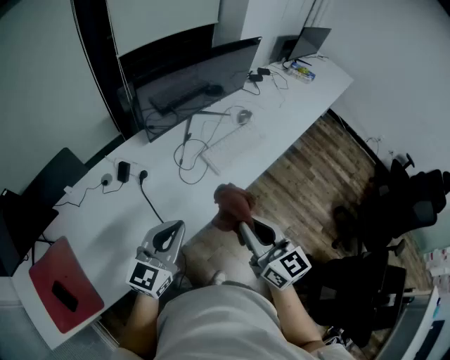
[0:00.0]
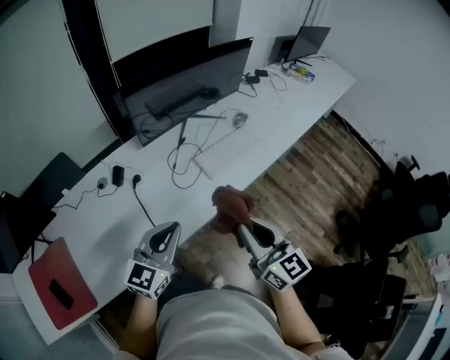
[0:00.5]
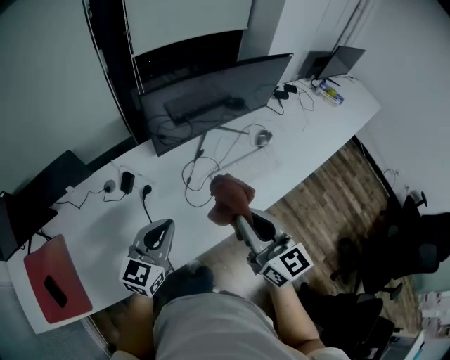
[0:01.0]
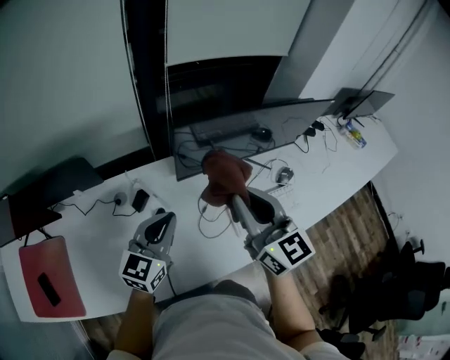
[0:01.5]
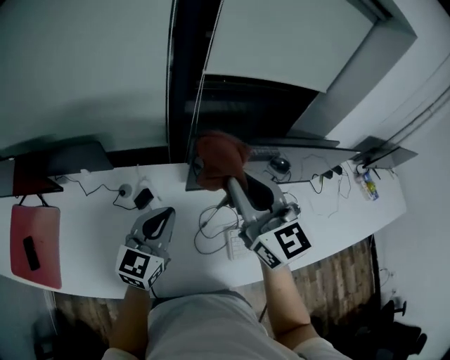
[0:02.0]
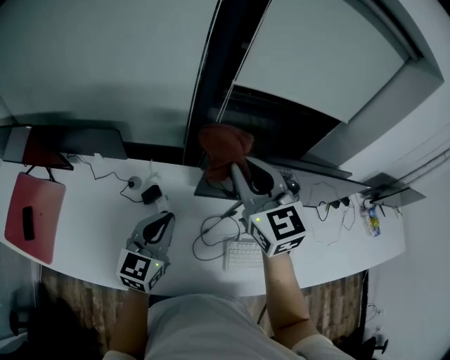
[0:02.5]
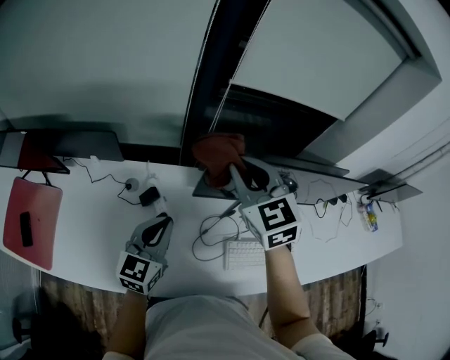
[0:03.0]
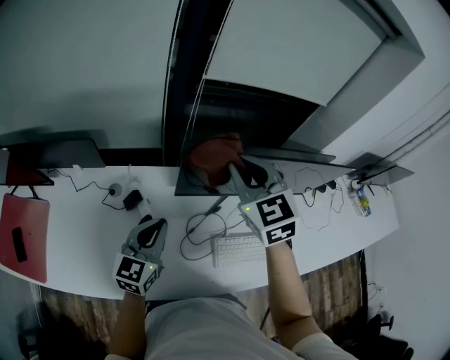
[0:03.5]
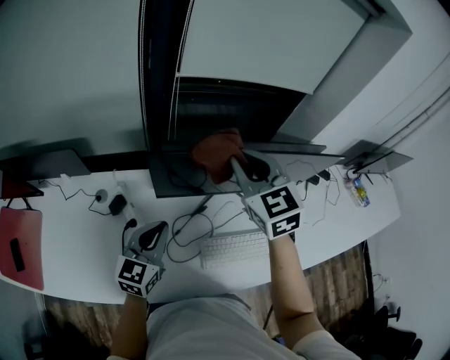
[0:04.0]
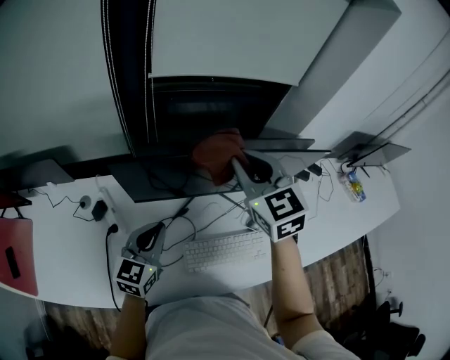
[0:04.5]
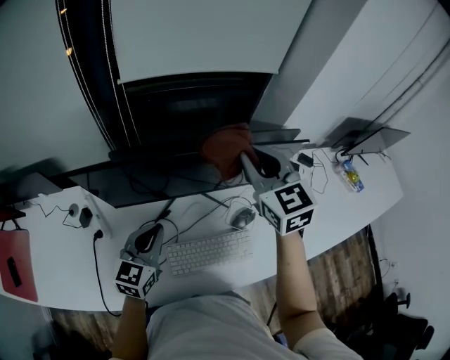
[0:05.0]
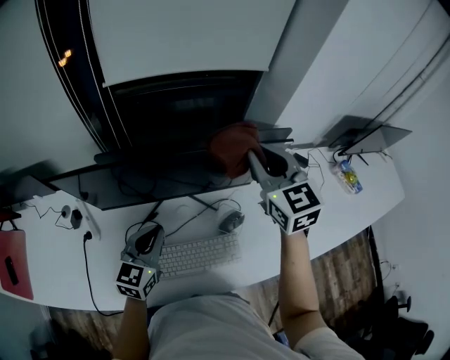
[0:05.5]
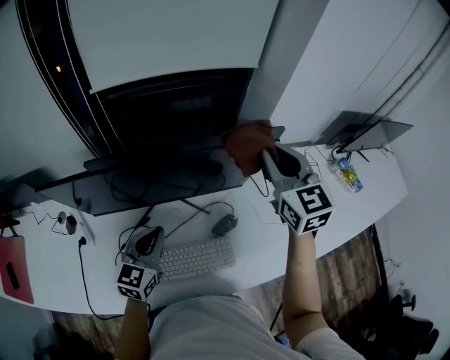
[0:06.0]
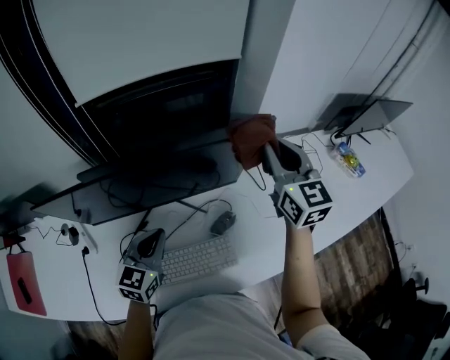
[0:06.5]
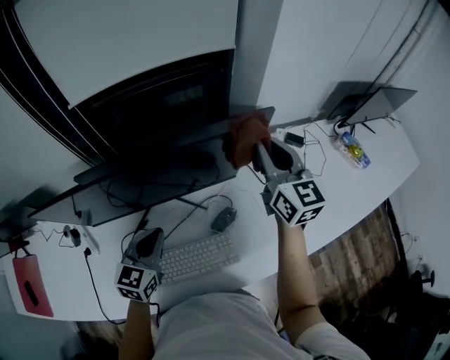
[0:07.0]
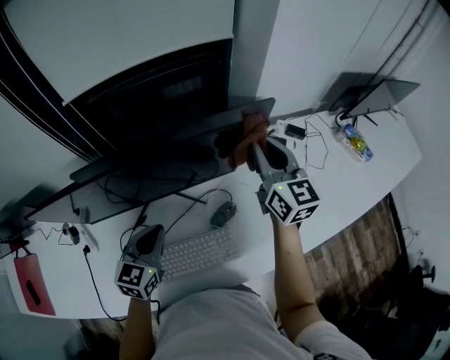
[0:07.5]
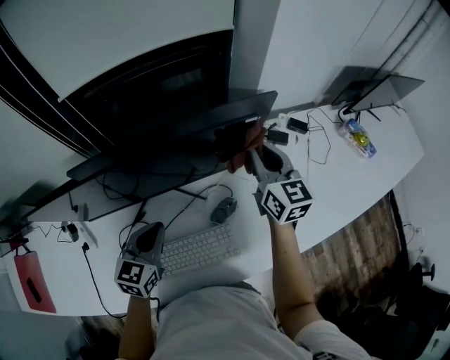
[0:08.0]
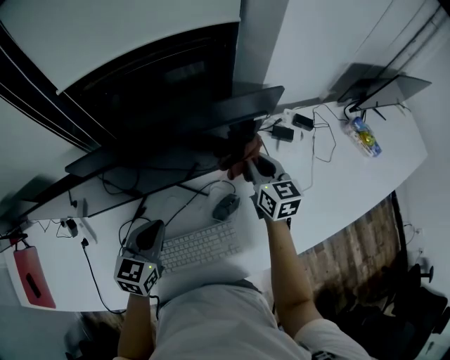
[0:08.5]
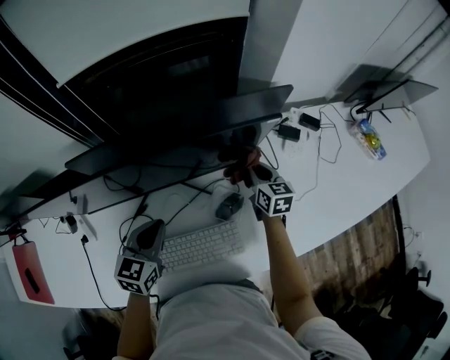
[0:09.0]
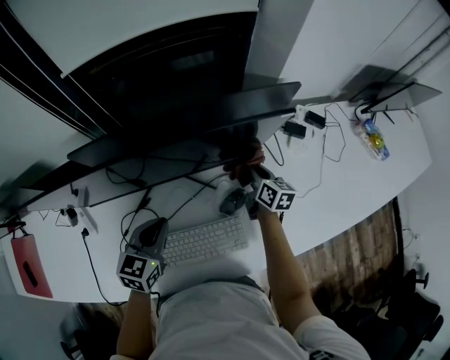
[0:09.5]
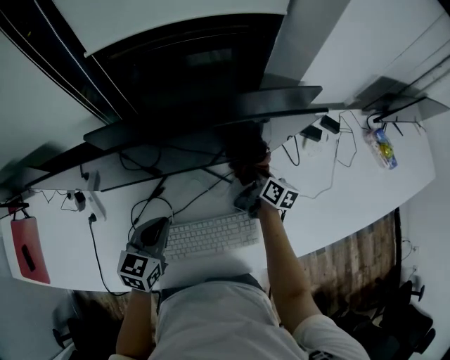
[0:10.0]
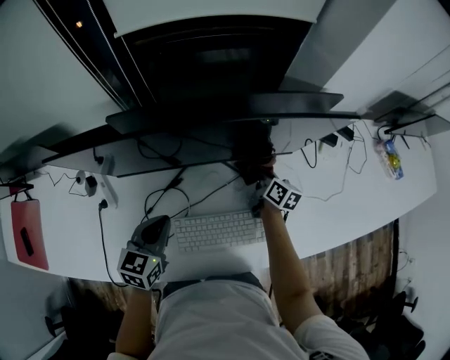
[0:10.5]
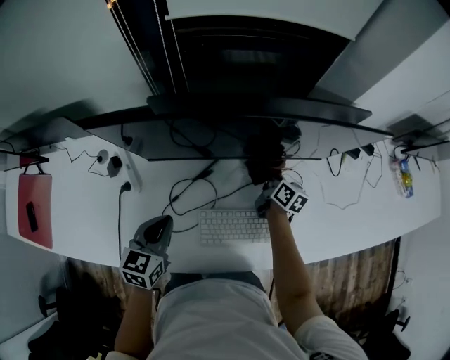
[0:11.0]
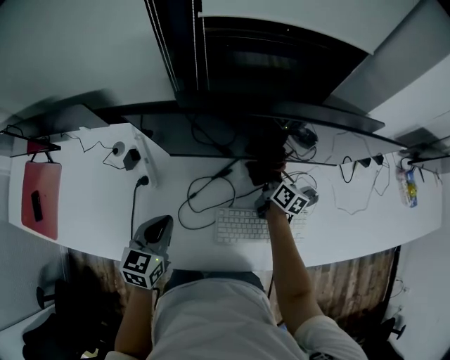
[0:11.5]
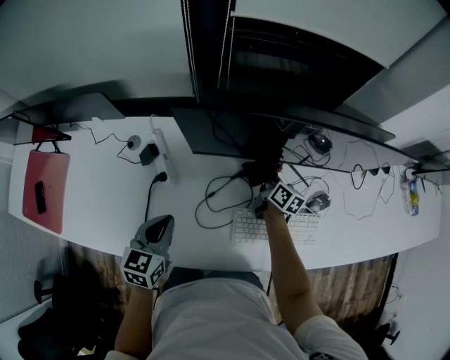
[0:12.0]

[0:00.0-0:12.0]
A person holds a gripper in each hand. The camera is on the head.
0:00.0 to 0:02.0: The left gripper moves about 30 cm, and turns by some 40 degrees; the right gripper changes place by approximately 40 cm, and rotates some 40 degrees.
0:02.0 to 0:04.0: The right gripper moves to the right and forward, roughly 15 cm, and rotates approximately 20 degrees; the left gripper shifts about 10 cm to the right and downward.
0:04.0 to 0:06.0: Both grippers travel together to the right, roughly 30 cm.
0:06.0 to 0:08.0: The left gripper ends up some 5 cm from where it was; the right gripper goes about 15 cm downward and to the right, and rotates approximately 20 degrees.
0:08.0 to 0:10.0: The right gripper is displaced downward by approximately 25 cm, and rotates approximately 40 degrees. Meanwhile the left gripper moves to the left, roughly 5 cm.
0:10.0 to 0:12.0: Both grippers travel together to the left, approximately 30 cm.

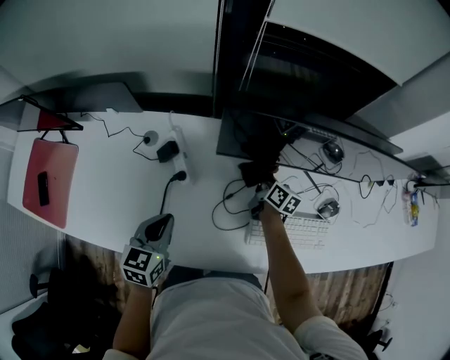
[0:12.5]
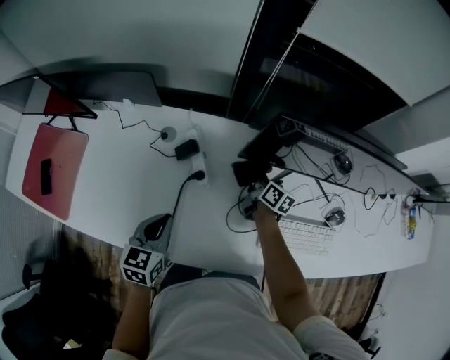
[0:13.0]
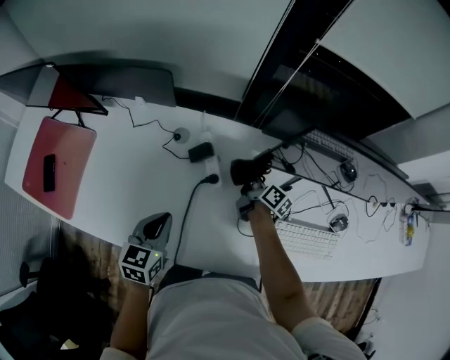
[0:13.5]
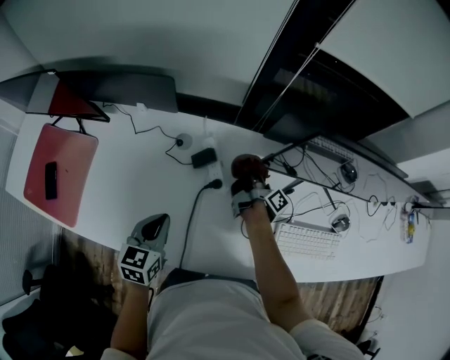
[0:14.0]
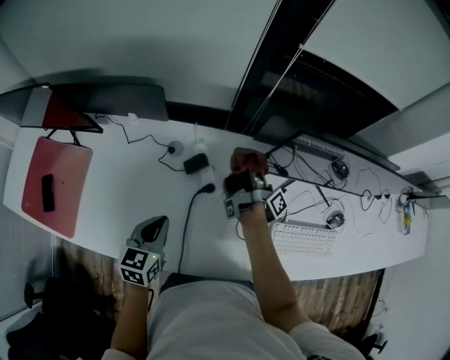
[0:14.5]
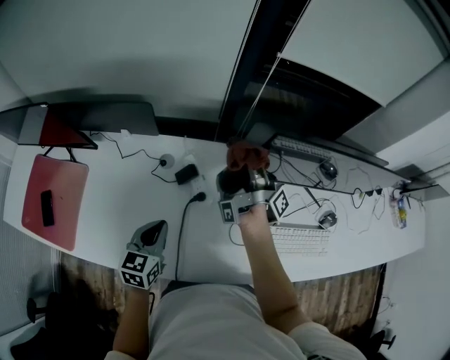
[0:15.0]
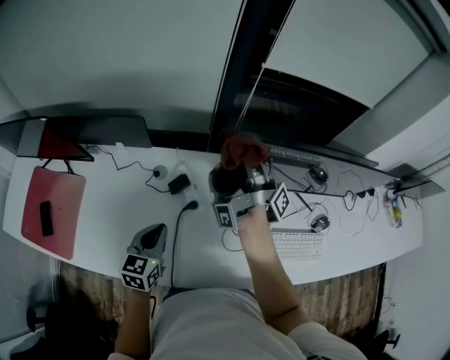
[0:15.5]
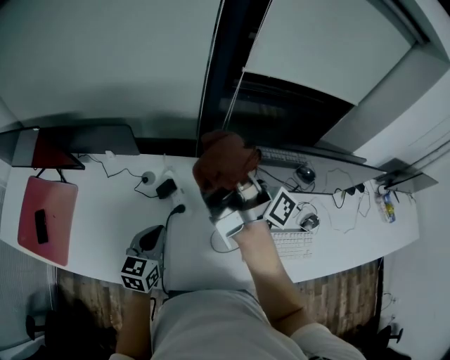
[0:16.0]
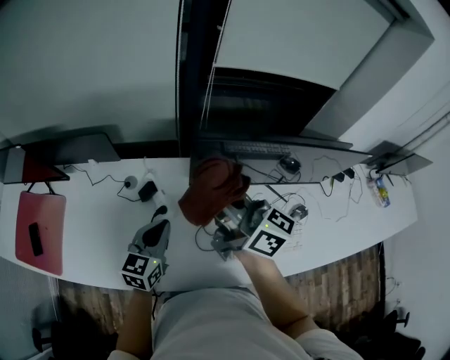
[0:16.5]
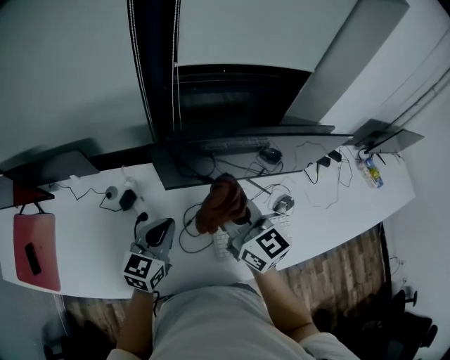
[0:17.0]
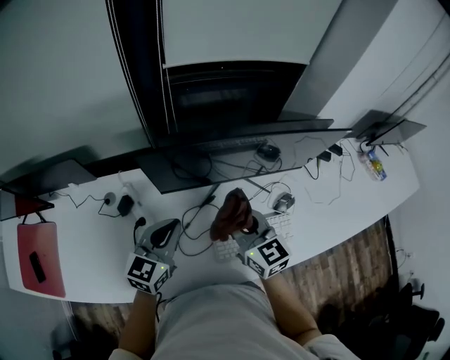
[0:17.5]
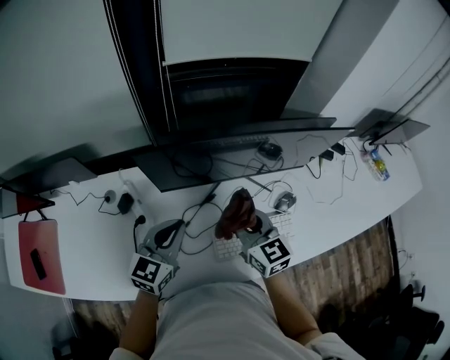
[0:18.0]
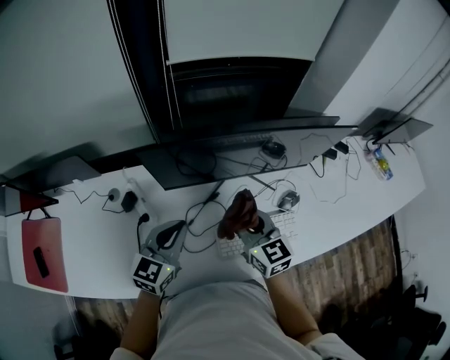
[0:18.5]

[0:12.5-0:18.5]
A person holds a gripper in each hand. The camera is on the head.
0:12.5 to 0:14.5: The right gripper travels to the left and upward by some 20 cm, and twists roughly 60 degrees clockwise, seen from behind, while the left gripper goes roughly 15 cm to the left.
0:14.5 to 0:16.5: The right gripper moves upward and backward, about 30 cm, and twists roughly 60 degrees counterclockwise, seen from behind, while the left gripper goes roughly 20 cm to the right and upward.
0:16.5 to 0:18.5: The left gripper travels to the right by about 15 cm. Meanwhile the right gripper travels to the right and downward by about 25 cm, and swivels roughly 50 degrees.

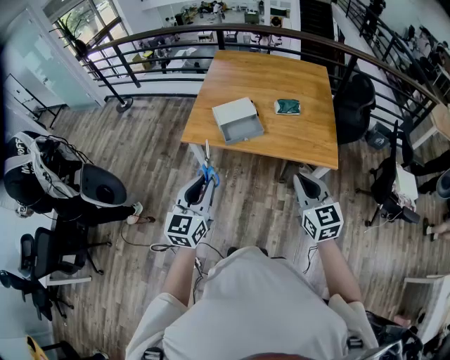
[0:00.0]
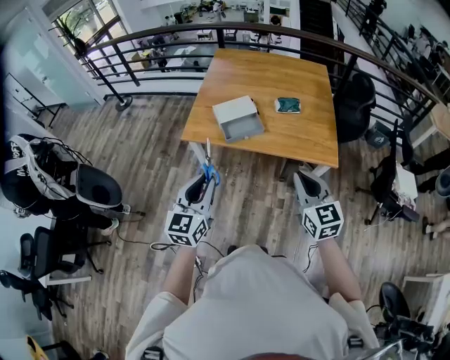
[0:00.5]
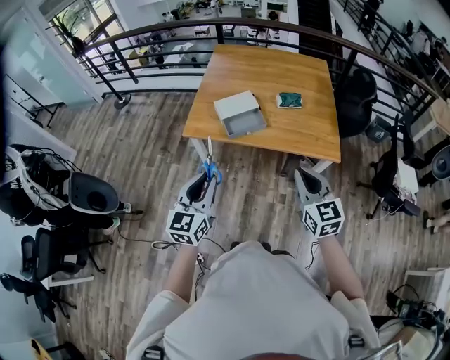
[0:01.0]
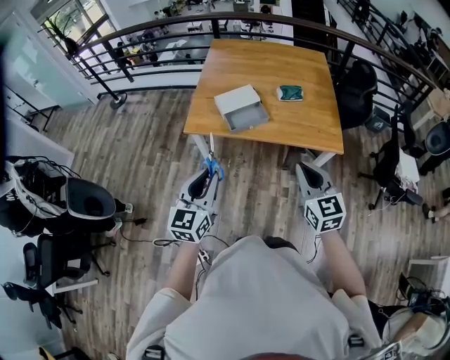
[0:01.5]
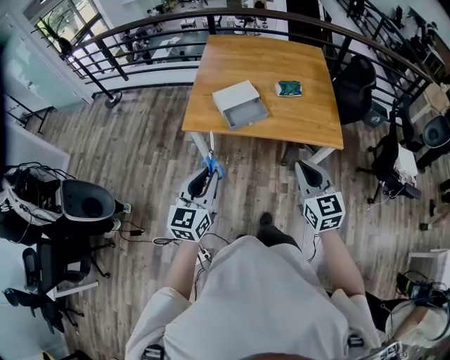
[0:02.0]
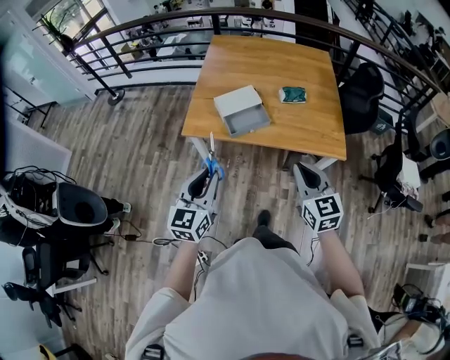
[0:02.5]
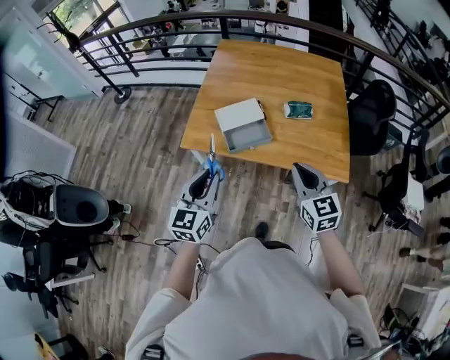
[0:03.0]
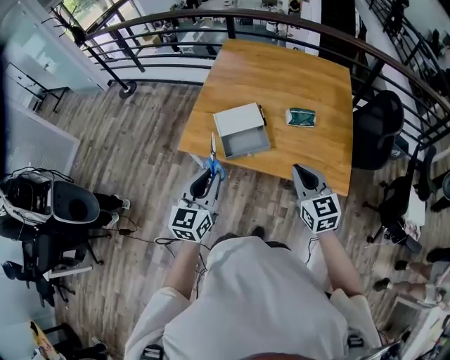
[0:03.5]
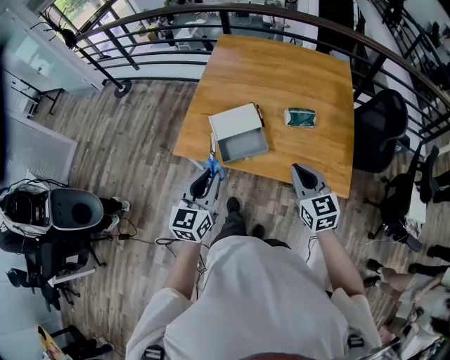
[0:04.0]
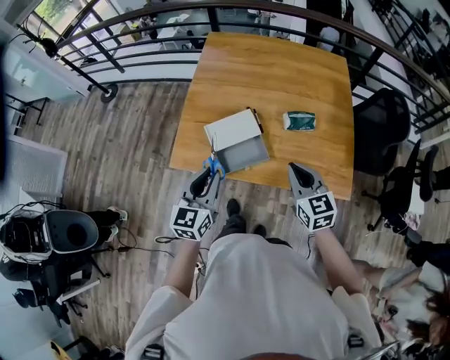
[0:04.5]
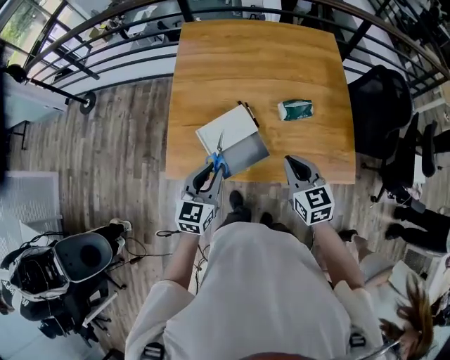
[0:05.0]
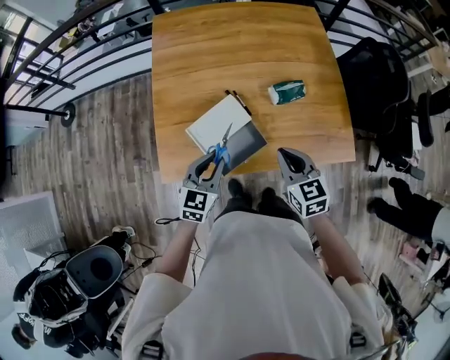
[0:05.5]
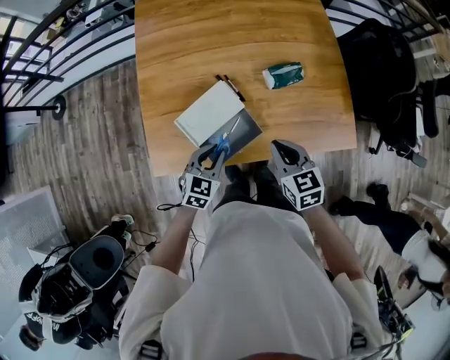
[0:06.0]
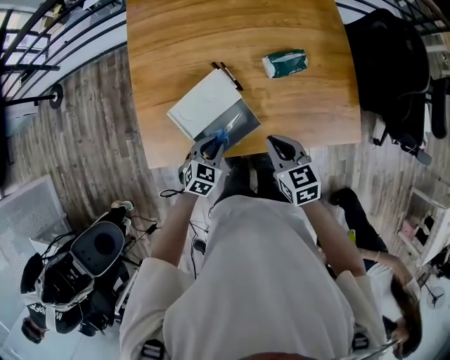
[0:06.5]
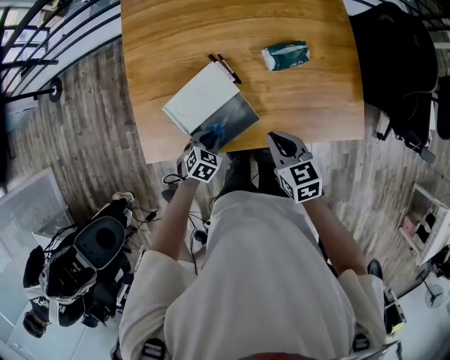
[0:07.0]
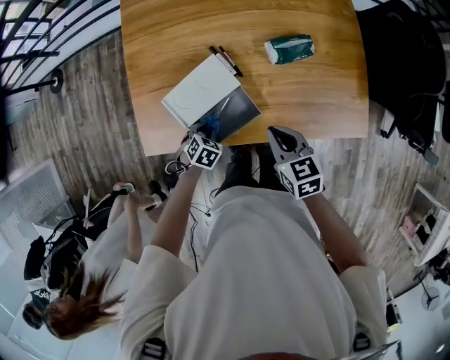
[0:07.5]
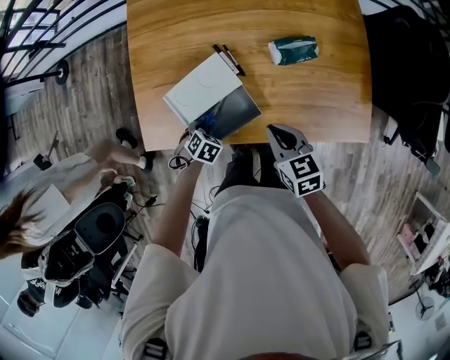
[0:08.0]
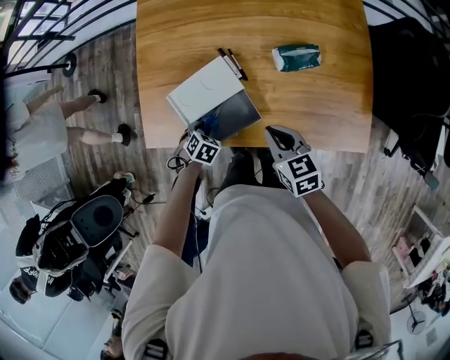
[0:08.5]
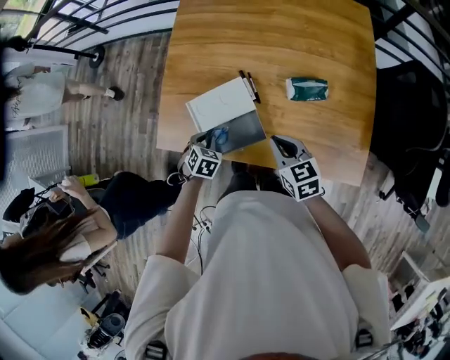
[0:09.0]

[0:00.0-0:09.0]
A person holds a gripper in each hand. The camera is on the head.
0:00.0 to 0:02.0: The two grippers go approximately 5 cm to the left.
0:02.0 to 0:04.5: Both grippers move forward, approximately 35 cm.
0:04.5 to 0:07.0: The right gripper shifts about 20 cm downward and forward, and swivels some 30 degrees, while the left gripper moves downward, roughly 35 cm, and points its fingers roughly 50 degrees further downward.
0:07.0 to 0:09.0: The left gripper goes roughly 5 cm upward, and swivels about 30 degrees.
